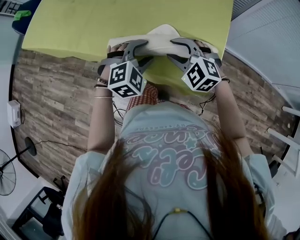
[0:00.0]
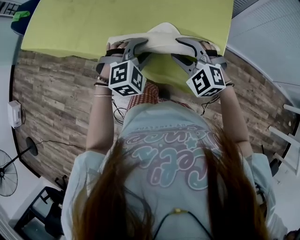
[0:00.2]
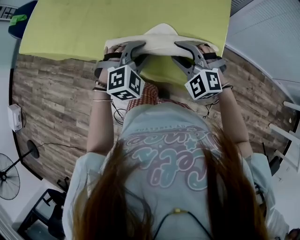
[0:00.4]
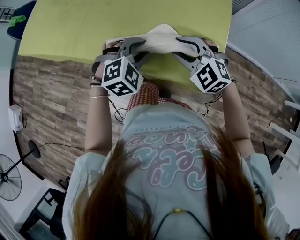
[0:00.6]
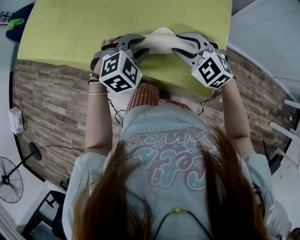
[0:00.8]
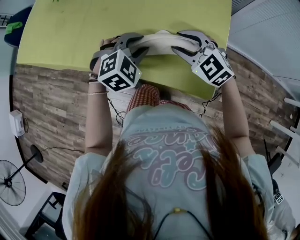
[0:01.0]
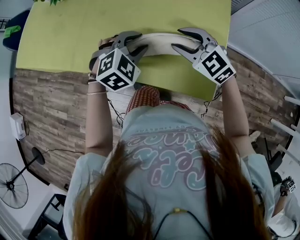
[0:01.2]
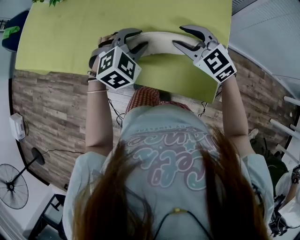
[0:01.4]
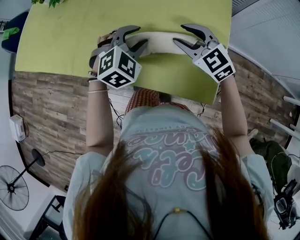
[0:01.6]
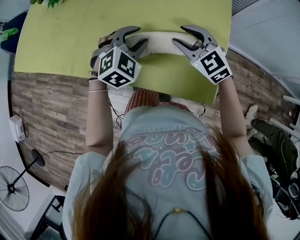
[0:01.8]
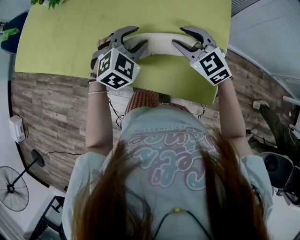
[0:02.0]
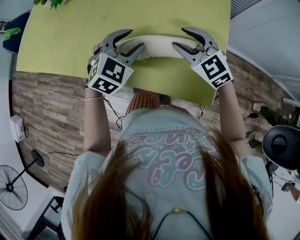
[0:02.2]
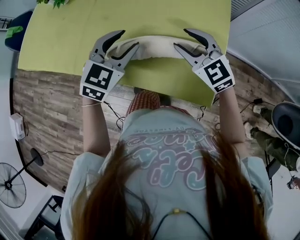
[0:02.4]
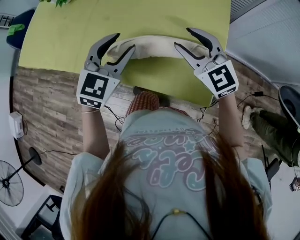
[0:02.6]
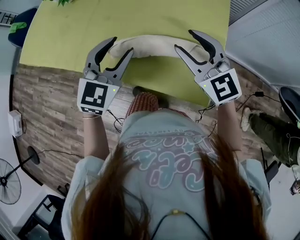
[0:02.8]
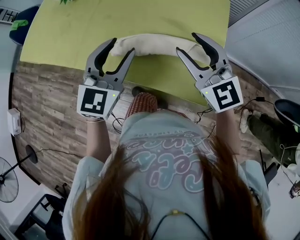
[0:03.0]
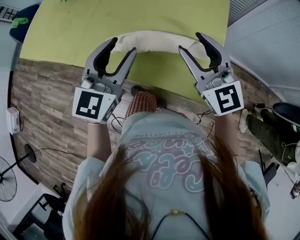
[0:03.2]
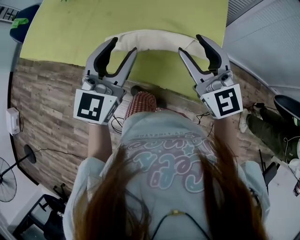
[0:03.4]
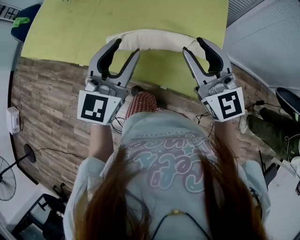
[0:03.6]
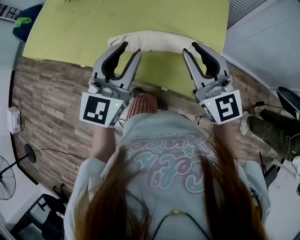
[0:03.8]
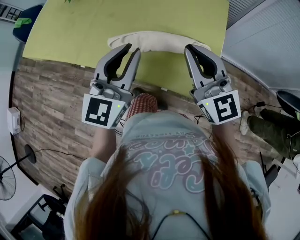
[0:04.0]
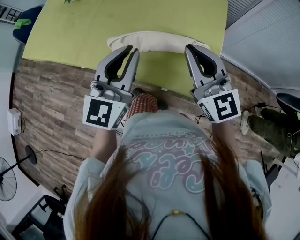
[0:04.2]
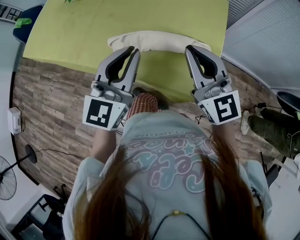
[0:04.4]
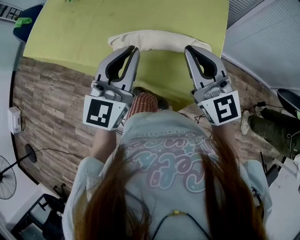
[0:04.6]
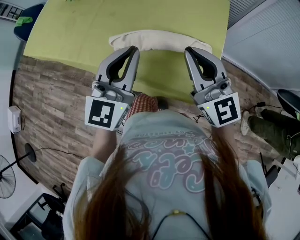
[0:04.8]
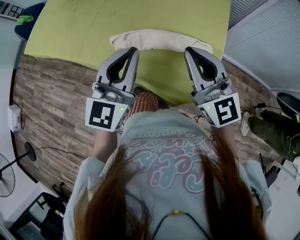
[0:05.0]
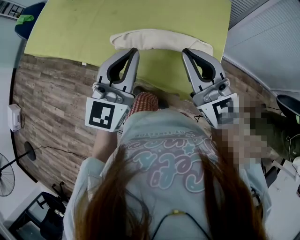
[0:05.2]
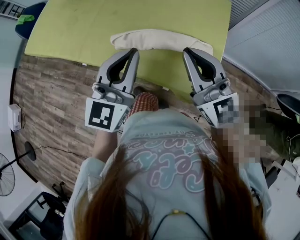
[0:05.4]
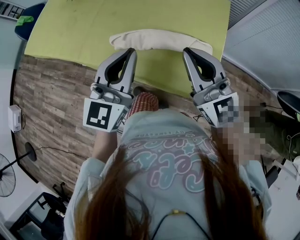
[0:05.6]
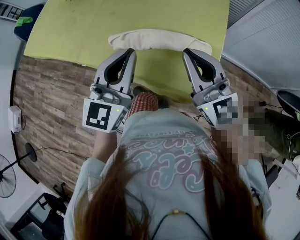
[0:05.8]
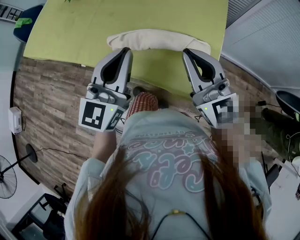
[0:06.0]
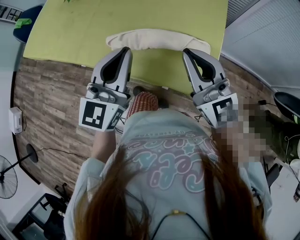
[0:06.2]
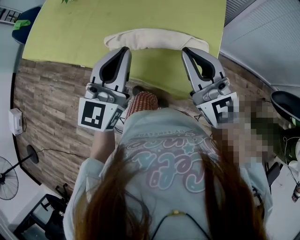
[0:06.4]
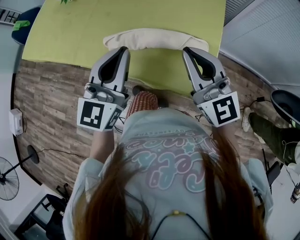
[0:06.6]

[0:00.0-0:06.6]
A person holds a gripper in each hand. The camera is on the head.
0:00.0 to 0:01.6: Both grippers travel together forward, approximately 10 cm. The right gripper changes its angle by approximately 20 degrees.
0:01.6 to 0:03.2: The grippers both shift upward and backward by about 15 cm. The right gripper swivels approximately 30 degrees; the left gripper tilts its fingers roughly 30 degrees upward.
0:03.2 to 0:05.0: The left gripper closes its fingers; the right gripper closes.
0:05.0 to 0:06.6: The grippers move only a little.

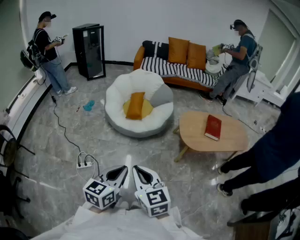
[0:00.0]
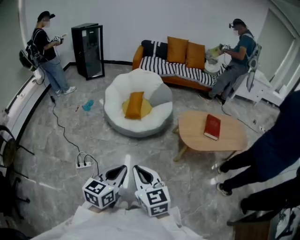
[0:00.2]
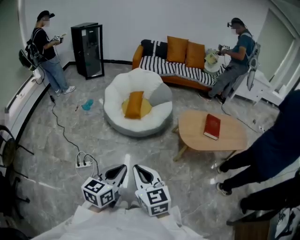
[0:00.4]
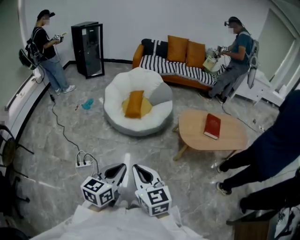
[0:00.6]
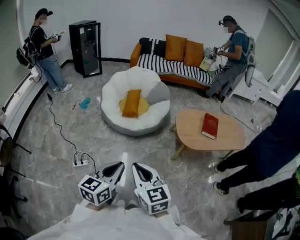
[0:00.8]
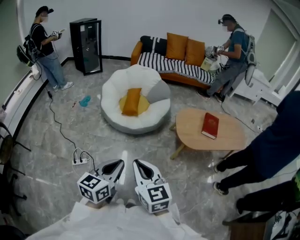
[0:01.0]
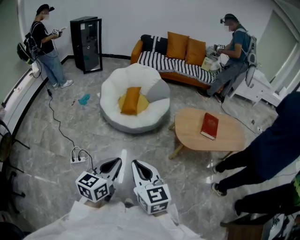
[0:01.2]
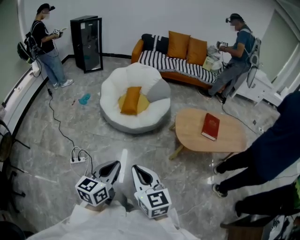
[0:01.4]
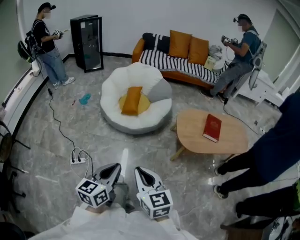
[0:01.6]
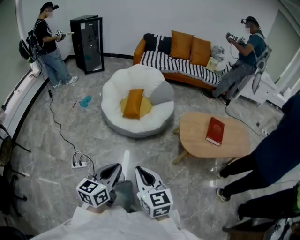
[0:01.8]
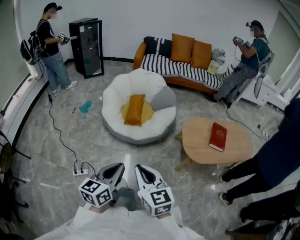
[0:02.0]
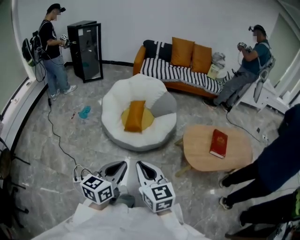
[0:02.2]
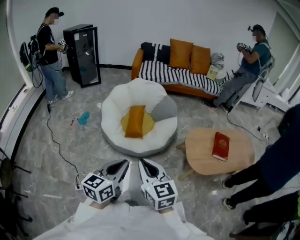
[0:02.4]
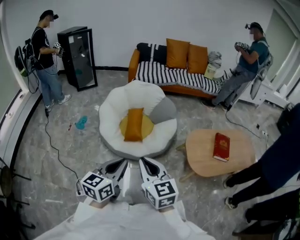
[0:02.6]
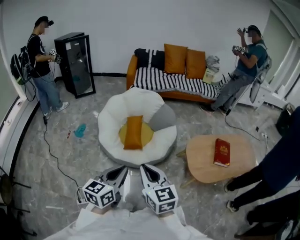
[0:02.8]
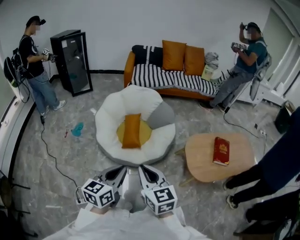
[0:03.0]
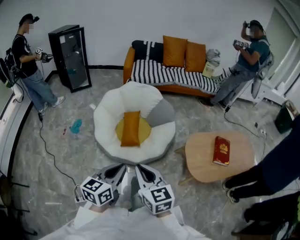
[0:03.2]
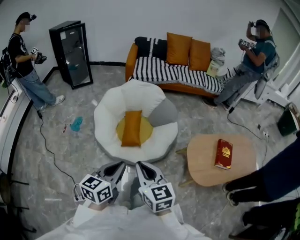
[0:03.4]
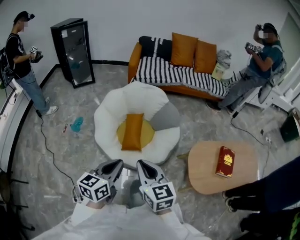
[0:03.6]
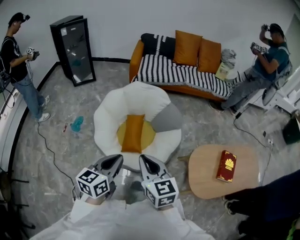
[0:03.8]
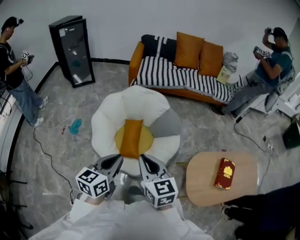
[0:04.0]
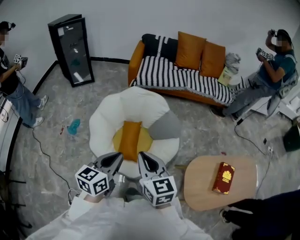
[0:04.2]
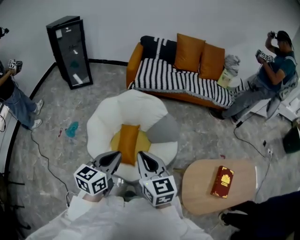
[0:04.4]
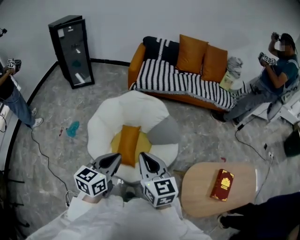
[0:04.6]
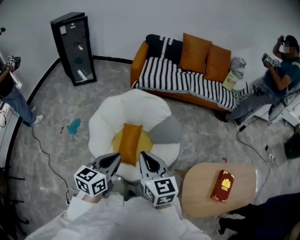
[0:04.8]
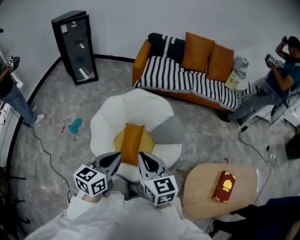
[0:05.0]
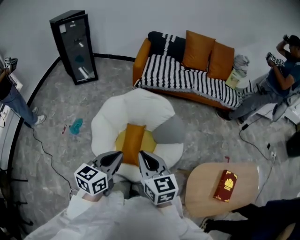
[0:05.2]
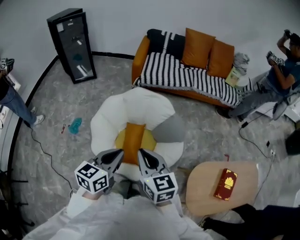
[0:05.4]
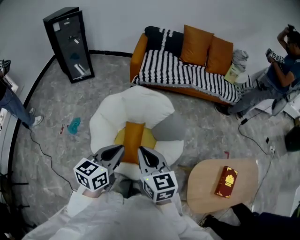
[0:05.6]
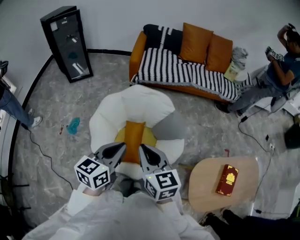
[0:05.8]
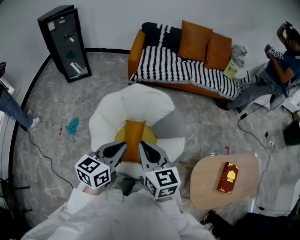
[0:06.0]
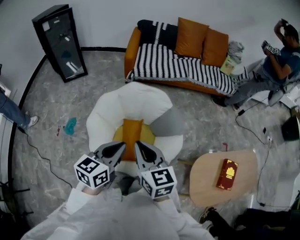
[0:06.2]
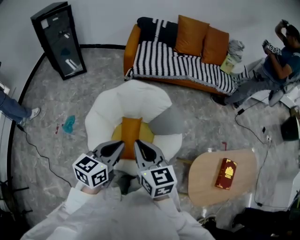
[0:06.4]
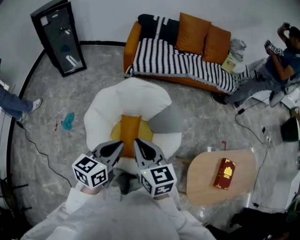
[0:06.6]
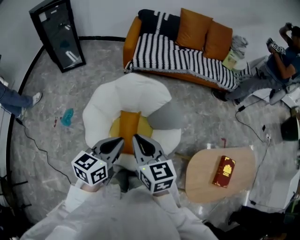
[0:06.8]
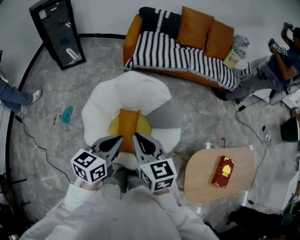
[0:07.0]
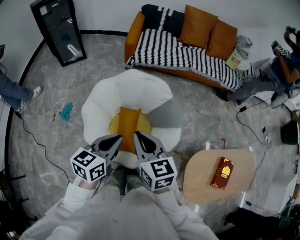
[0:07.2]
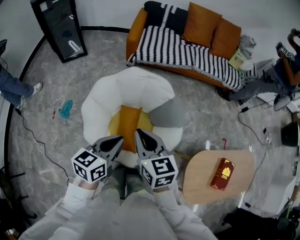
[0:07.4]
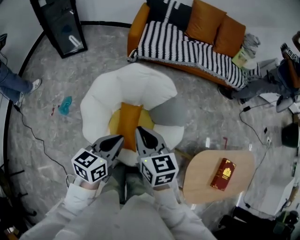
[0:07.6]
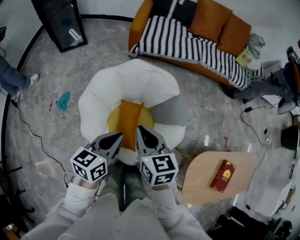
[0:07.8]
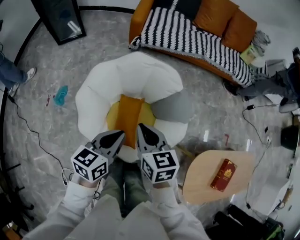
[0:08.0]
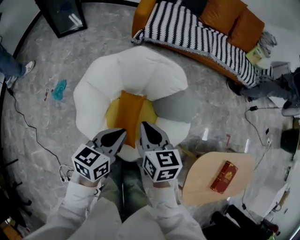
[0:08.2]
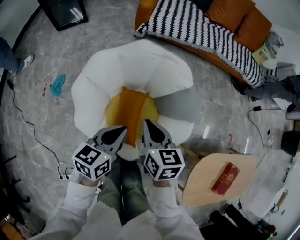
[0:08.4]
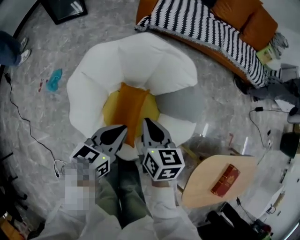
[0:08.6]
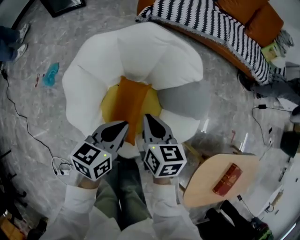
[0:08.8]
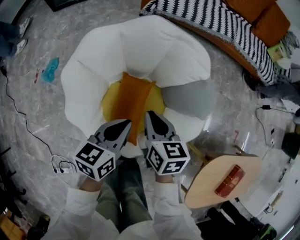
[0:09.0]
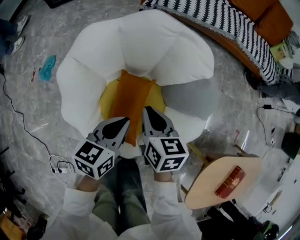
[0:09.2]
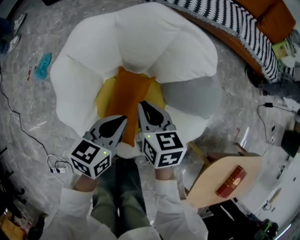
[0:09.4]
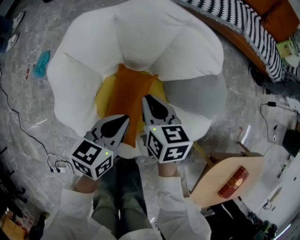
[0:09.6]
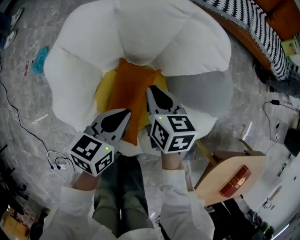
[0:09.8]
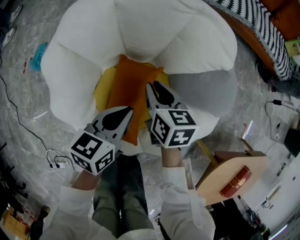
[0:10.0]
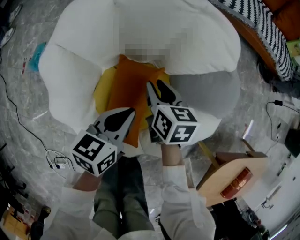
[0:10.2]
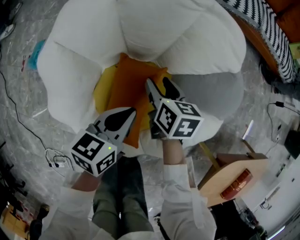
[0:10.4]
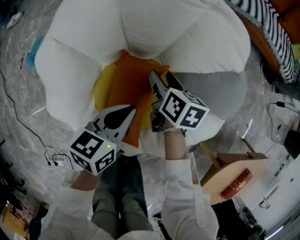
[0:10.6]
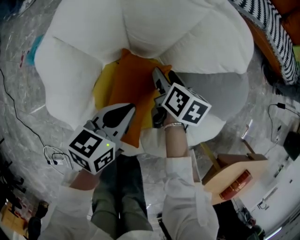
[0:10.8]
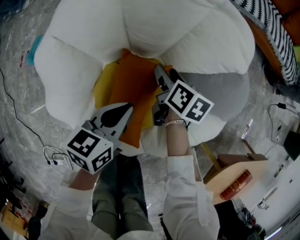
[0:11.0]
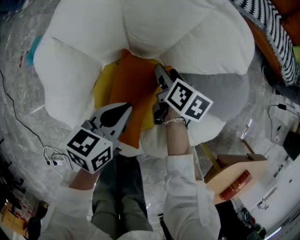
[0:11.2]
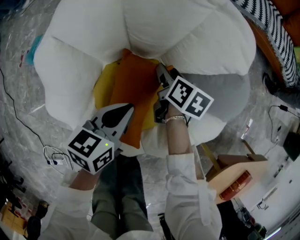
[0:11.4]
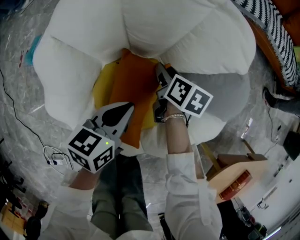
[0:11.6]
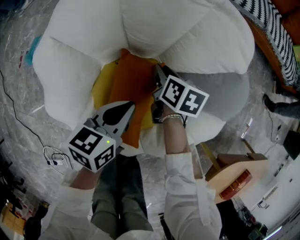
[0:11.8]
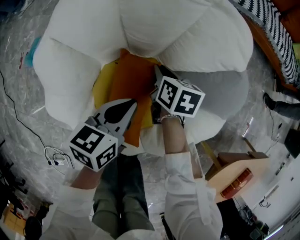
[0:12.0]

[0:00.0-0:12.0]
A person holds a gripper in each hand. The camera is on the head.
0:00.0 to 0:01.6: The right gripper goes roughly 10 cm forward and to the right. The left gripper shifts some 5 cm forward.
0:01.6 to 0:03.0: The two grippers go roughly 35 cm forward.
0:03.0 to 0:04.4: Both grippers move forward, about 35 cm.
0:04.4 to 0:06.0: Both grippers move forward and to the left, roughly 10 cm.
0:06.0 to 0:07.6: The right gripper goes approximately 10 cm forward and downward. The left gripper travels downward and forward by some 10 cm.
0:07.6 to 0:09.0: The two grippers go some 30 cm downward.
0:09.0 to 0:10.4: The left gripper shifts some 15 cm downward. Meanwhile the right gripper is displaced downward and forward by approximately 20 cm, and opens.
0:10.4 to 0:12.0: The right gripper shifts by approximately 5 cm, and closes its fingers.

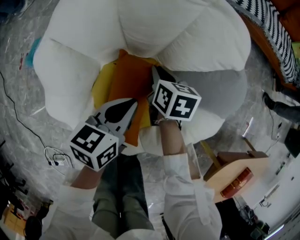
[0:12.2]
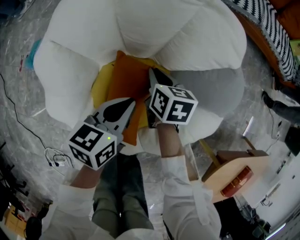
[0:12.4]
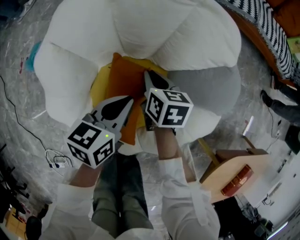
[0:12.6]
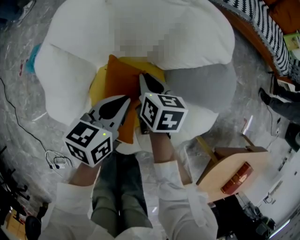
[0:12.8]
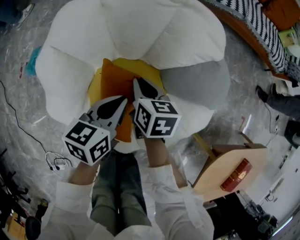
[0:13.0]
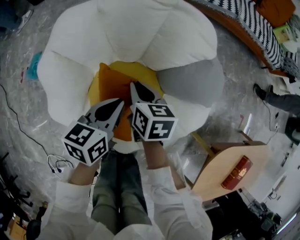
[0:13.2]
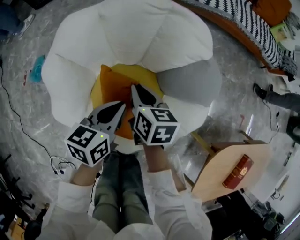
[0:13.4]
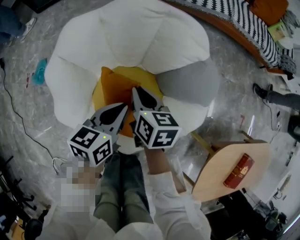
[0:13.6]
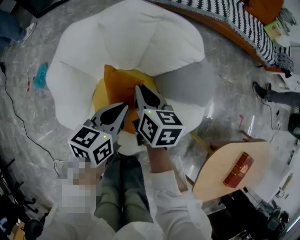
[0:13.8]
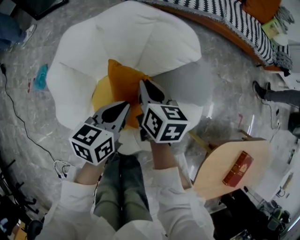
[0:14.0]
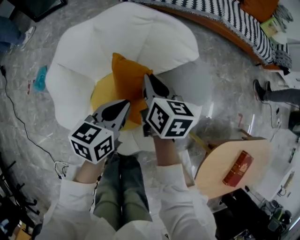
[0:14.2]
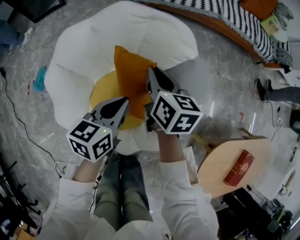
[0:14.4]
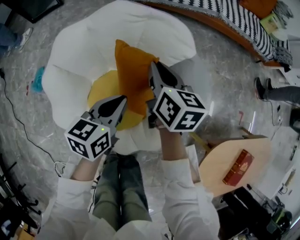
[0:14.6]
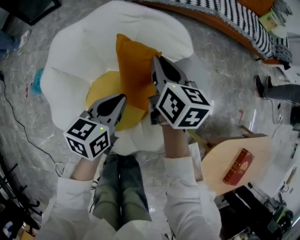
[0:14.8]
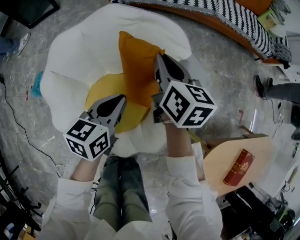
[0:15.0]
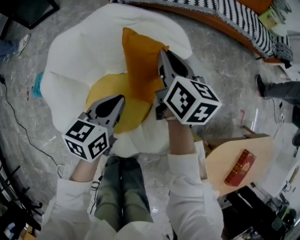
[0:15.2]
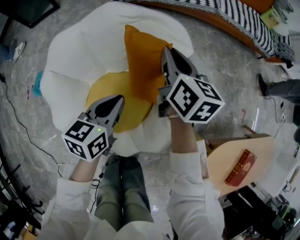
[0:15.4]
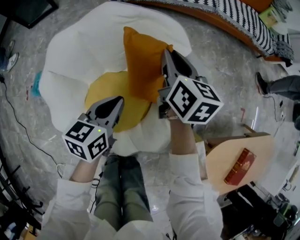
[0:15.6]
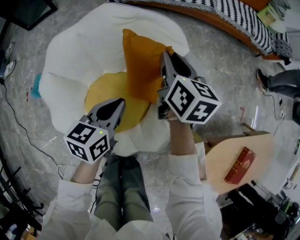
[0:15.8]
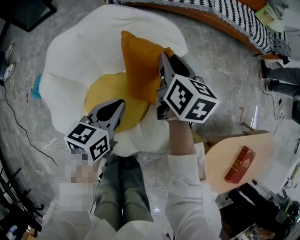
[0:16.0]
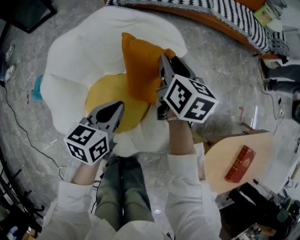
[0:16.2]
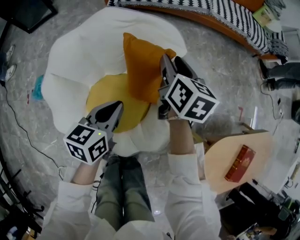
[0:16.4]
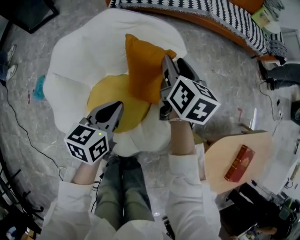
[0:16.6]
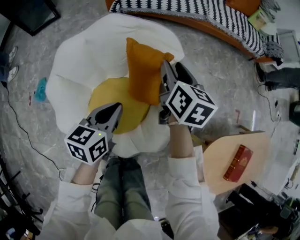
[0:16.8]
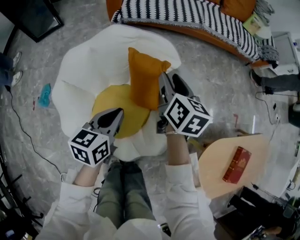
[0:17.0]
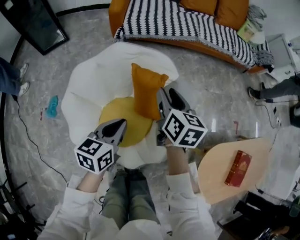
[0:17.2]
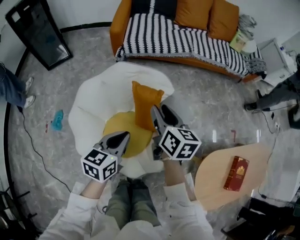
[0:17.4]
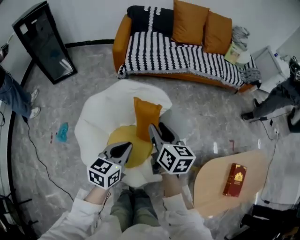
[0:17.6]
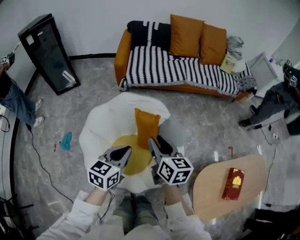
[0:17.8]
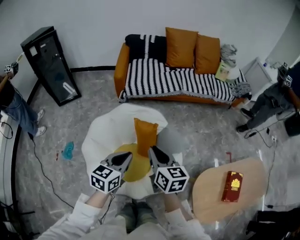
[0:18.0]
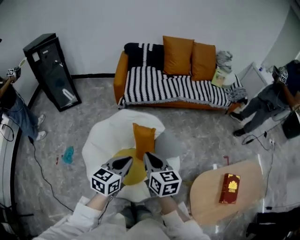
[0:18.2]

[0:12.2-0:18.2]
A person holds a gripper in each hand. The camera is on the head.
0:12.2 to 0:13.8: The right gripper is displaced upward by roughly 20 cm, while the left gripper heads upward, covering approximately 10 cm.
0:13.8 to 0:15.2: The left gripper moves forward, roughly 5 cm; the right gripper goes approximately 20 cm forward, to the right and upward.
0:15.2 to 0:16.6: The right gripper opens up.
0:16.6 to 0:18.2: The left gripper moves upward, some 30 cm, and turns by about 20 degrees, while the right gripper is displaced upward and backward by approximately 40 cm, and closes up.
